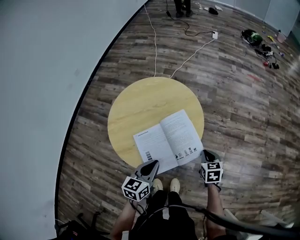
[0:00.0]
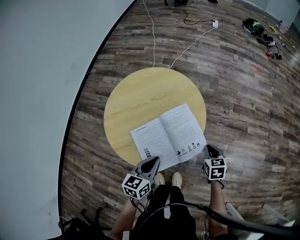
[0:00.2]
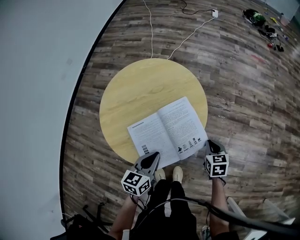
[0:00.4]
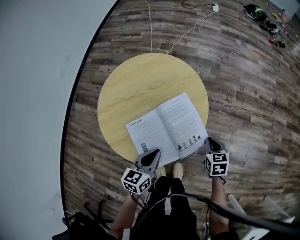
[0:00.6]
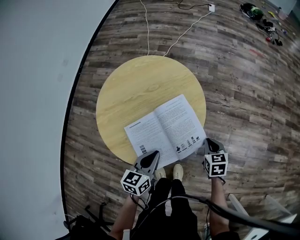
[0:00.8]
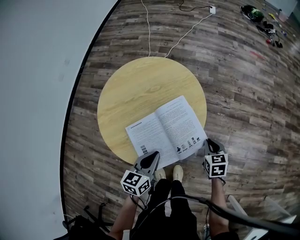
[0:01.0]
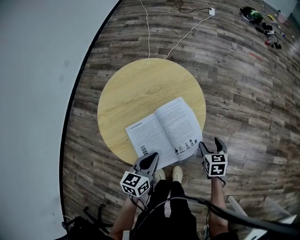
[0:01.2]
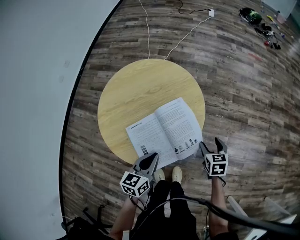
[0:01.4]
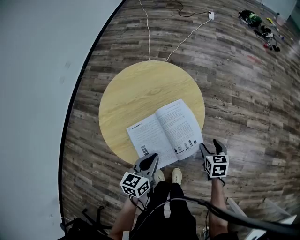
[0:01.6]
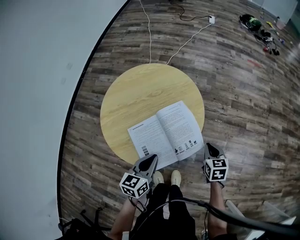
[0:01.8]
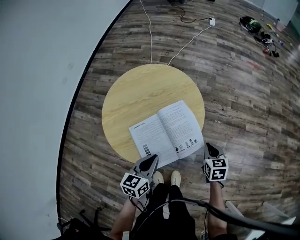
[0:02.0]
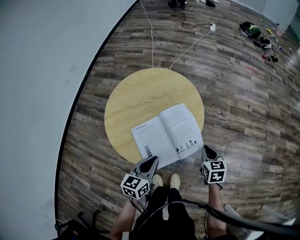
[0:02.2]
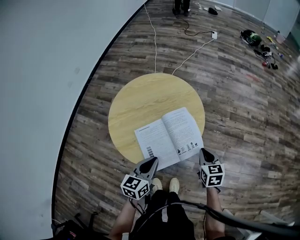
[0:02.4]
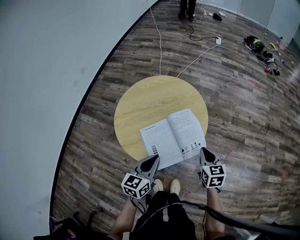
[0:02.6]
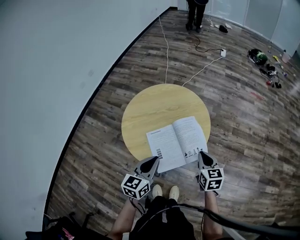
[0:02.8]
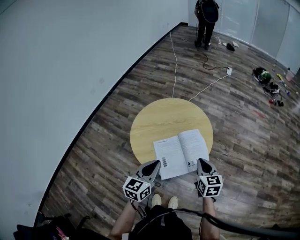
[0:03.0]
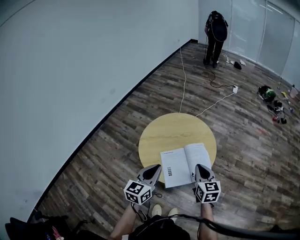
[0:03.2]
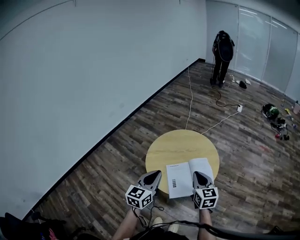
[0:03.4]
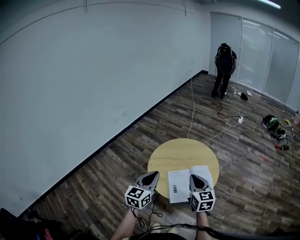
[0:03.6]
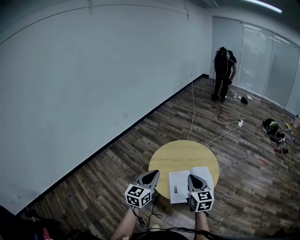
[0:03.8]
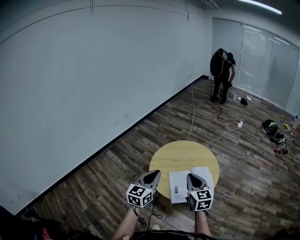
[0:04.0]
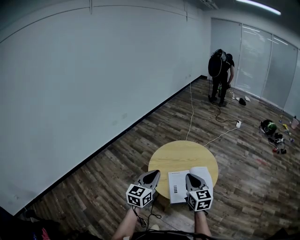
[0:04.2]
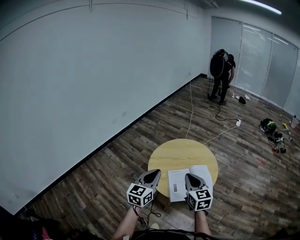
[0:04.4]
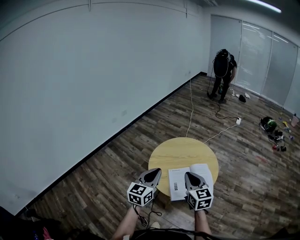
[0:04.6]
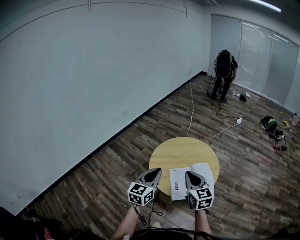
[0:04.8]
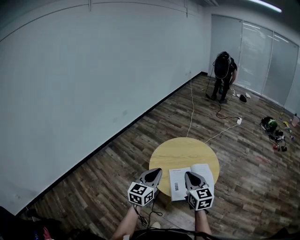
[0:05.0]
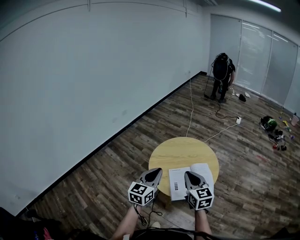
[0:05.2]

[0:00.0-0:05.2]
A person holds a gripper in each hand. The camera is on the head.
0:00.0 to 0:01.8: The right gripper opens and closes again.
0:01.8 to 0:03.4: The grippers both shift upward and to the left by approximately 30 cm. The right gripper changes its angle by about 40 degrees. The left gripper turns by some 30 degrees.
0:03.4 to 0:05.2: The right gripper shifts some 10 cm to the left and upward.

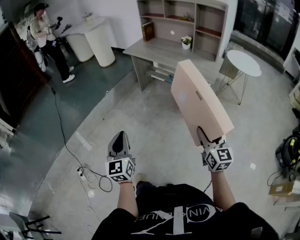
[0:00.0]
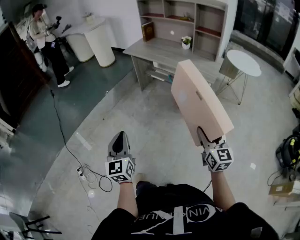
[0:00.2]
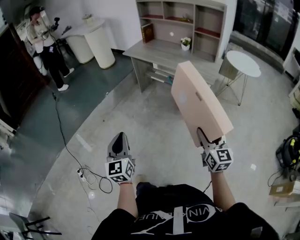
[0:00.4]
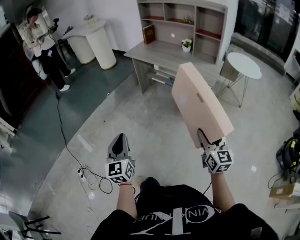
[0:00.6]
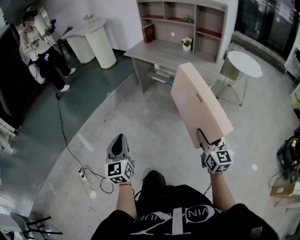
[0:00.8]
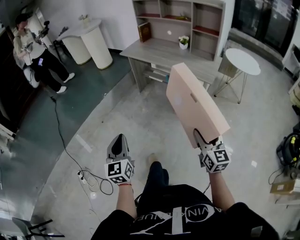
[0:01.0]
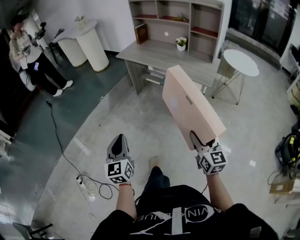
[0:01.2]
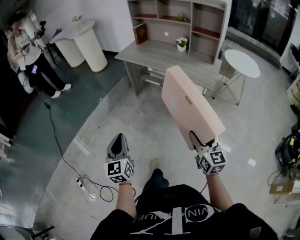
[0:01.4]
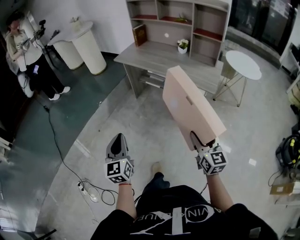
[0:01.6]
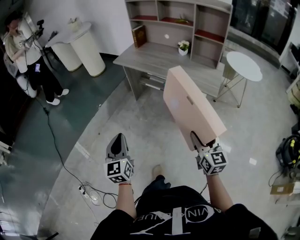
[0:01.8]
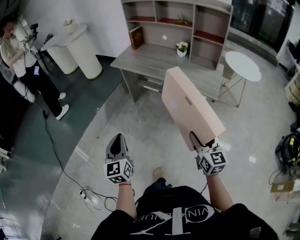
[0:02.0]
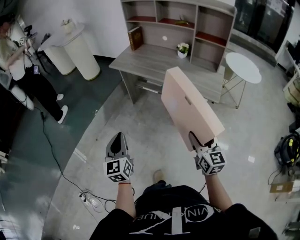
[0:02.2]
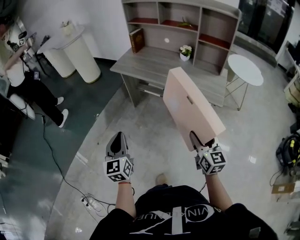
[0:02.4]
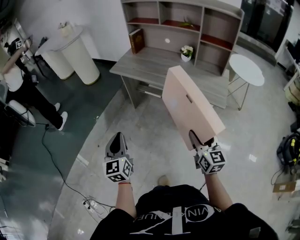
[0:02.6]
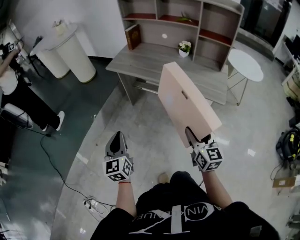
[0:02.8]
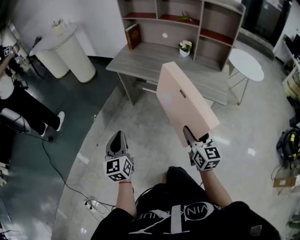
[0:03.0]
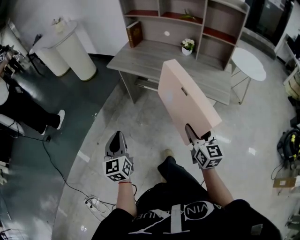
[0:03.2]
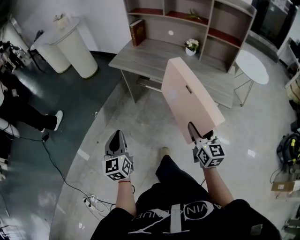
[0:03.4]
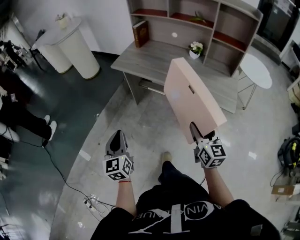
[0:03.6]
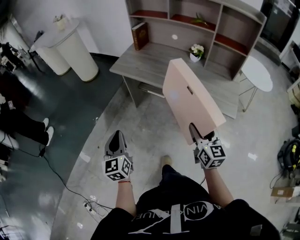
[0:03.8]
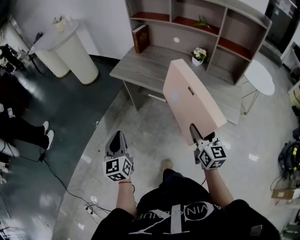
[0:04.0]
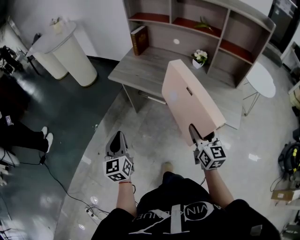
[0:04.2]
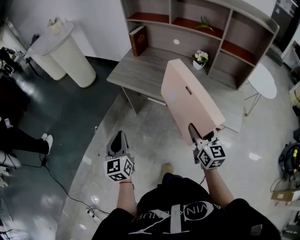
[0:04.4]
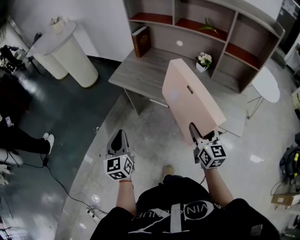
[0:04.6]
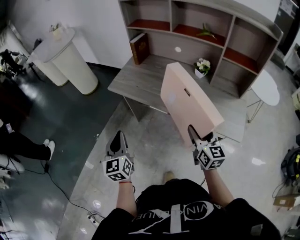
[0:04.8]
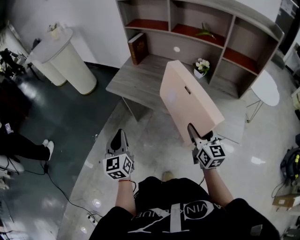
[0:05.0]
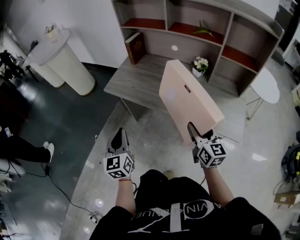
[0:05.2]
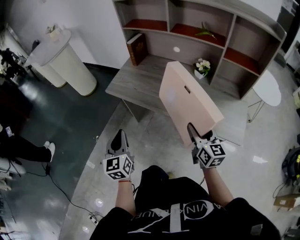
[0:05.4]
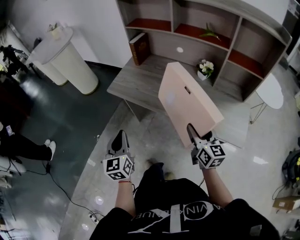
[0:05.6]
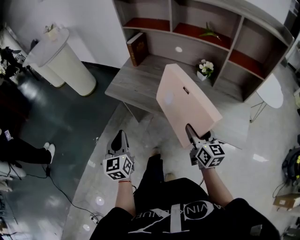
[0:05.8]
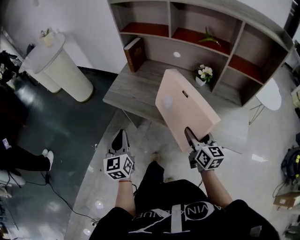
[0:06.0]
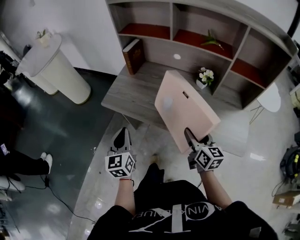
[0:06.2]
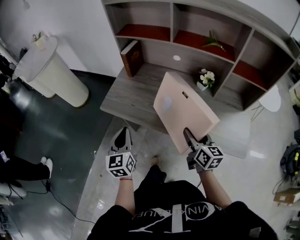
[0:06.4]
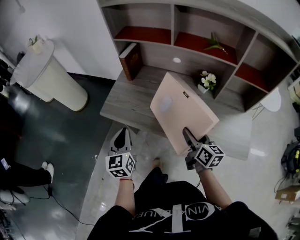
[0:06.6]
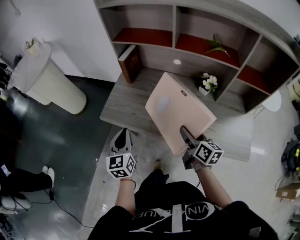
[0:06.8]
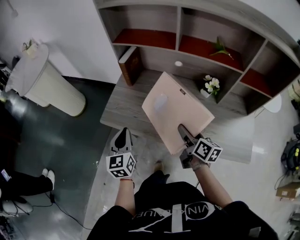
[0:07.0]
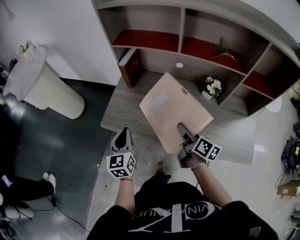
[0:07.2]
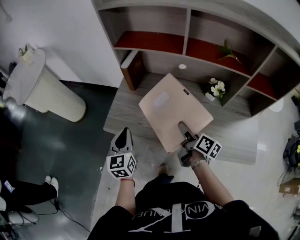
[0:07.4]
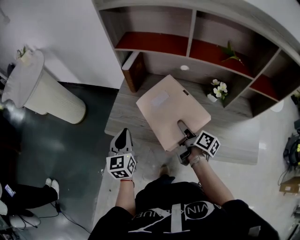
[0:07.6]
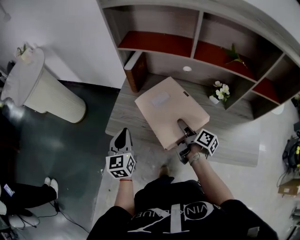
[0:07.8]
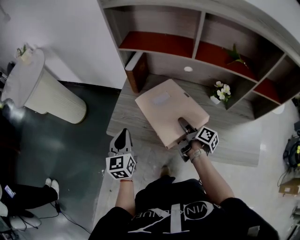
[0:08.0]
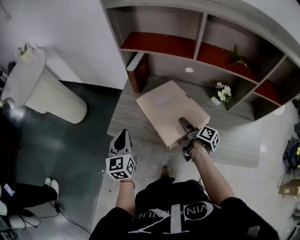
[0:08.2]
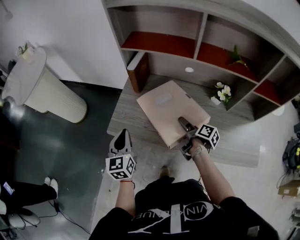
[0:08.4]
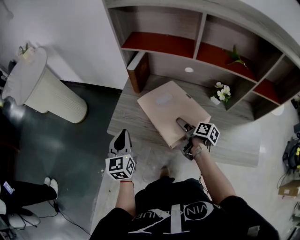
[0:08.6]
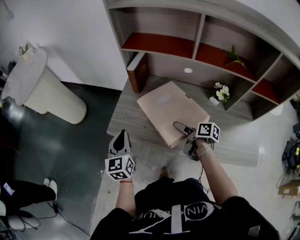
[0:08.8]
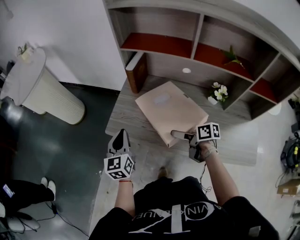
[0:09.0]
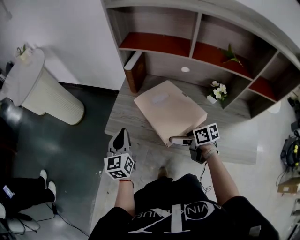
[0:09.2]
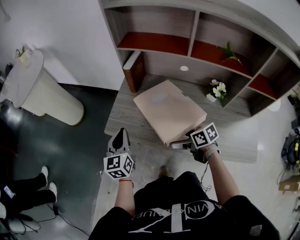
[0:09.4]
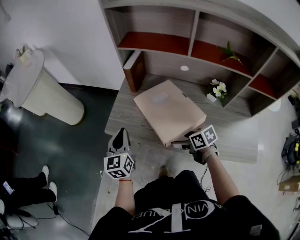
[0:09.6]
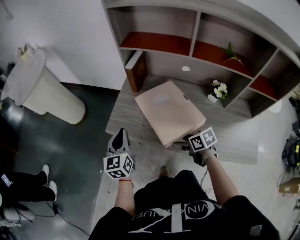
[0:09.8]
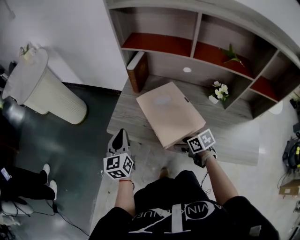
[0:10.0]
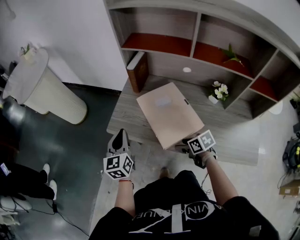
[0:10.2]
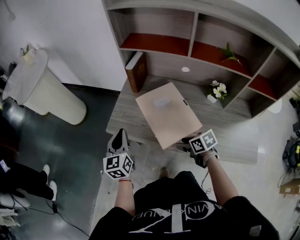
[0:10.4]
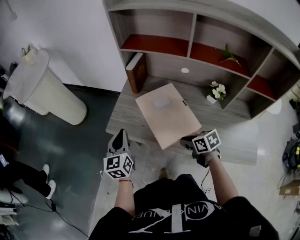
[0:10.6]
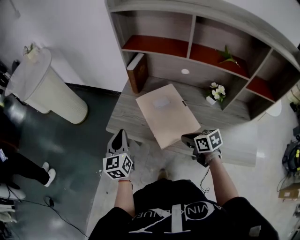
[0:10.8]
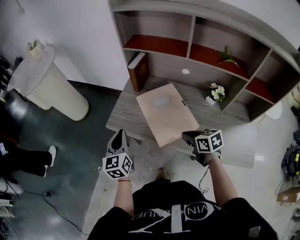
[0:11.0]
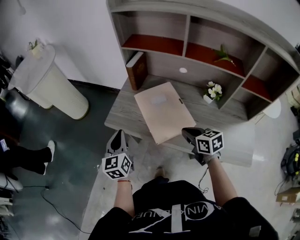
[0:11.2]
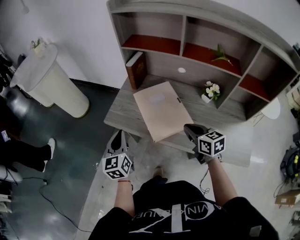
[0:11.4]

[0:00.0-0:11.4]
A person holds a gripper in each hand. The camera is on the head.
0:00.0 to 0:01.4: The two grippers go about 10 cm forward.
0:01.4 to 0:02.8: The grippers both shift forward by roughly 25 cm.
0:02.8 to 0:04.2: The two grippers go approximately 20 cm forward.
0:04.2 to 0:05.6: The grippers both shift forward by about 10 cm.
0:05.6 to 0:07.2: Both grippers move forward, about 25 cm. The right gripper changes its angle by about 40 degrees.
0:07.2 to 0:08.6: The left gripper travels to the left by some 5 cm. Meanwhile the right gripper shifts some 10 cm downward and forward, and turns by about 20 degrees.
0:08.6 to 0:10.0: The right gripper travels backward and to the left by approximately 10 cm, and twists some 50 degrees counterclockwise, seen from behind.
0:10.0 to 0:11.4: The right gripper shifts about 15 cm upward and to the right, turns by approximately 30 degrees, and closes; the left gripper travels backward by approximately 10 cm.

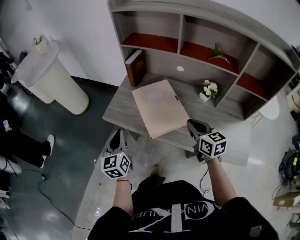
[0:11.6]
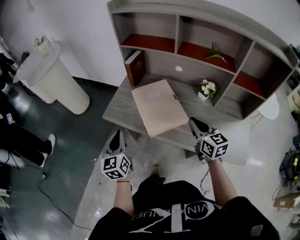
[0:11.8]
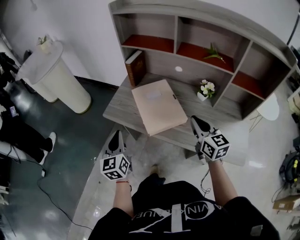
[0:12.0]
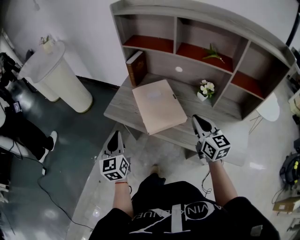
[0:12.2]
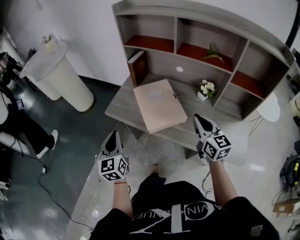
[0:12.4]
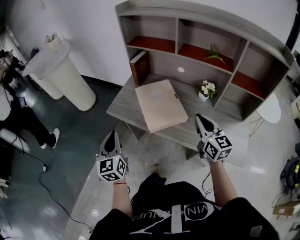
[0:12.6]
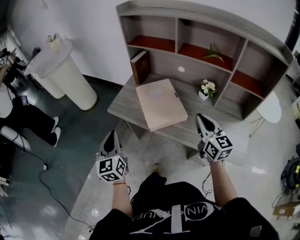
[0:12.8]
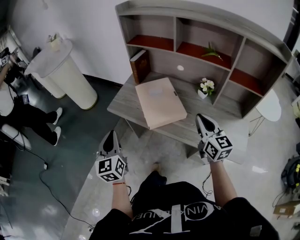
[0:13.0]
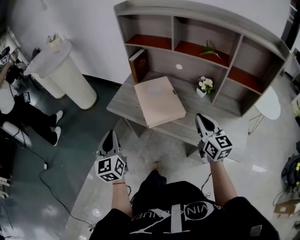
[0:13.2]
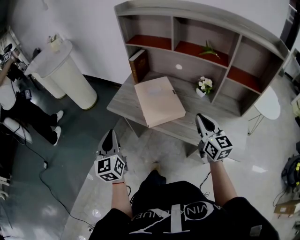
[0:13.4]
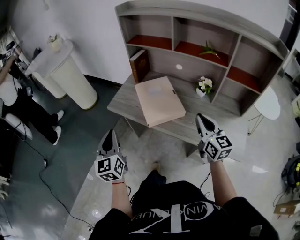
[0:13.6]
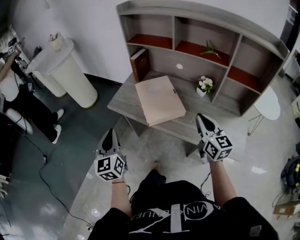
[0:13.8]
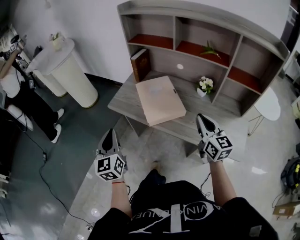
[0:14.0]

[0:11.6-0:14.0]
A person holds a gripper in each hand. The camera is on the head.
0:11.6 to 0:12.8: The left gripper moves backward, about 10 cm. The right gripper is displaced upward and backward by about 10 cm.
0:12.8 to 0:14.0: The grippers move only a little.

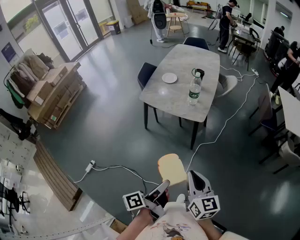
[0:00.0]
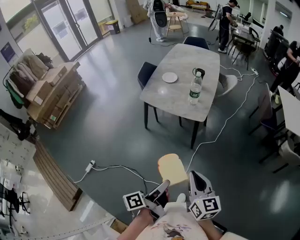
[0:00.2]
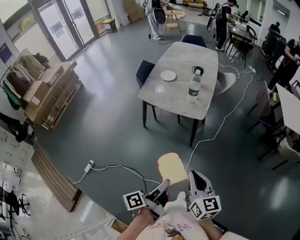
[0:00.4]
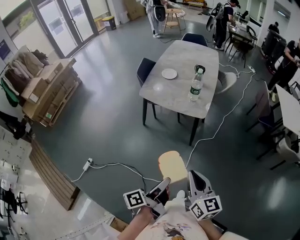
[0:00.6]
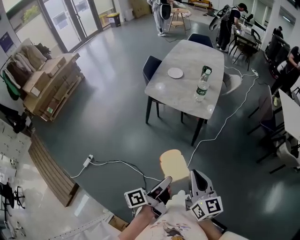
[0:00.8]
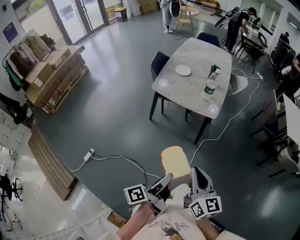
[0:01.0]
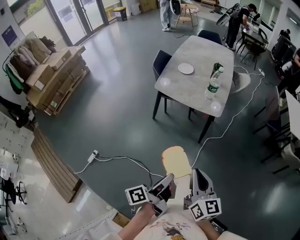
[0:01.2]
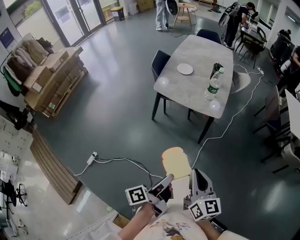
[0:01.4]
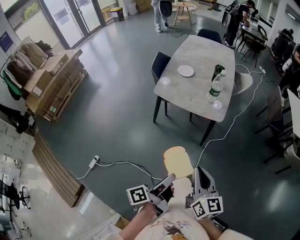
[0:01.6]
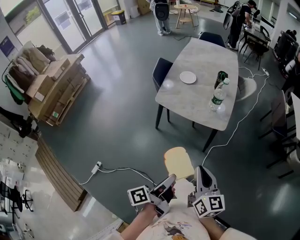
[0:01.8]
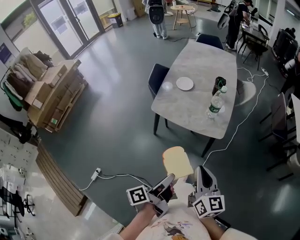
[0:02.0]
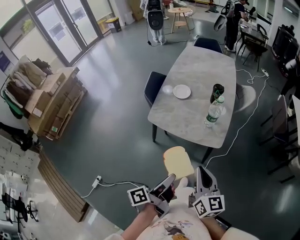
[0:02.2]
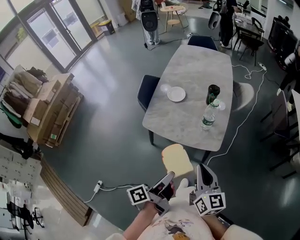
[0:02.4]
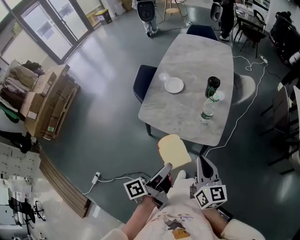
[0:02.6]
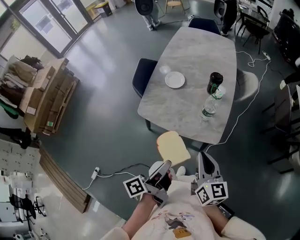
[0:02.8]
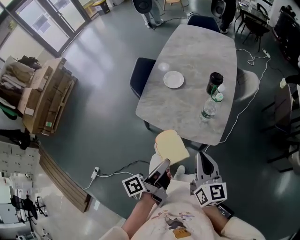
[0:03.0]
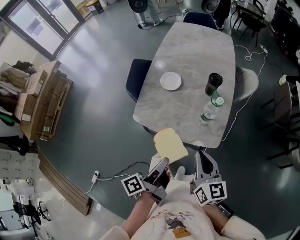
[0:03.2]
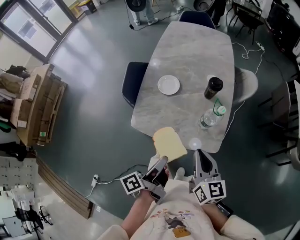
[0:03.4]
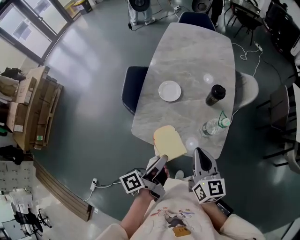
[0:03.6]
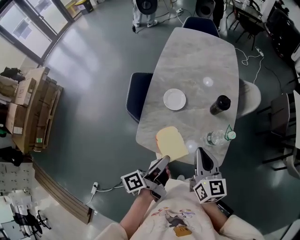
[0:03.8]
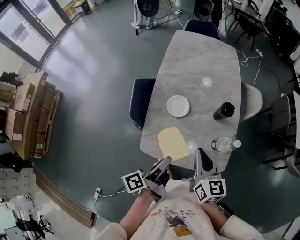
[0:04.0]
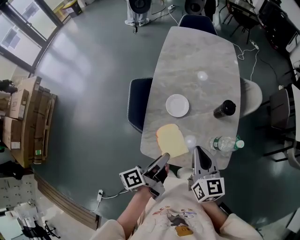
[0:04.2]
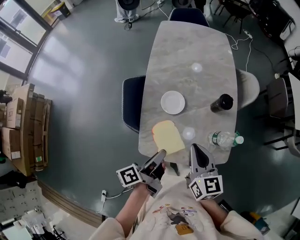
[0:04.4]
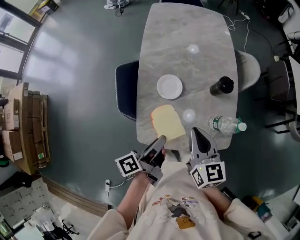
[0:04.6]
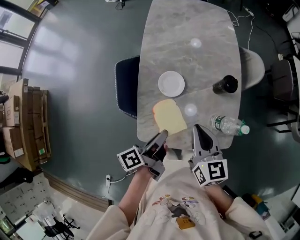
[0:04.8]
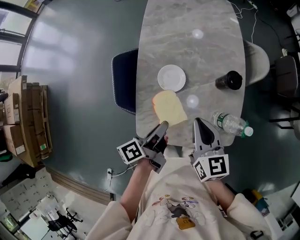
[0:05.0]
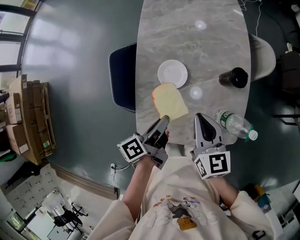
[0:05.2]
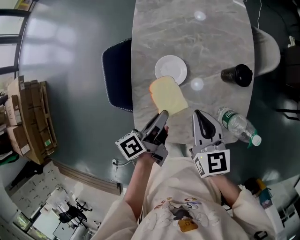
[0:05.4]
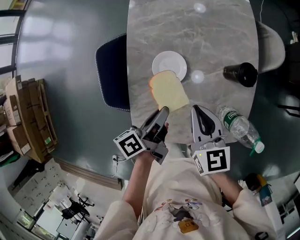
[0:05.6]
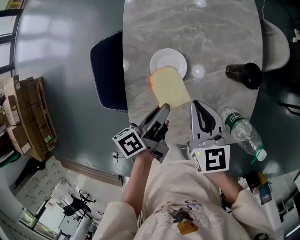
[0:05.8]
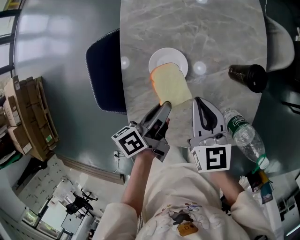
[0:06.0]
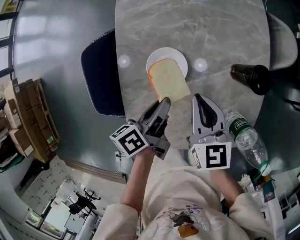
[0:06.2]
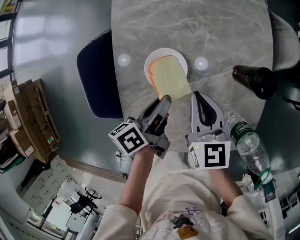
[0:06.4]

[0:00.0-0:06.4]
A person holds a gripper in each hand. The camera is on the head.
0:00.0 to 0:01.6: The right gripper shifts by approximately 15 cm.
0:01.6 to 0:03.2: The right gripper moves some 40 cm.
0:03.2 to 0:04.8: The right gripper changes place by approximately 30 cm.
0:04.8 to 0:06.4: The right gripper heads downward, covering approximately 20 cm.
